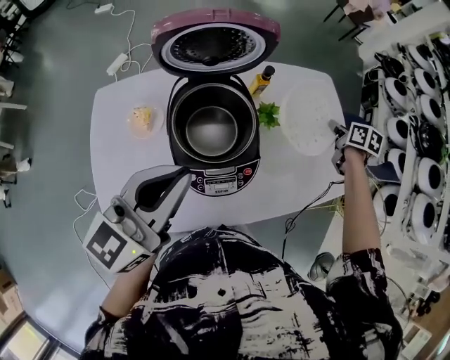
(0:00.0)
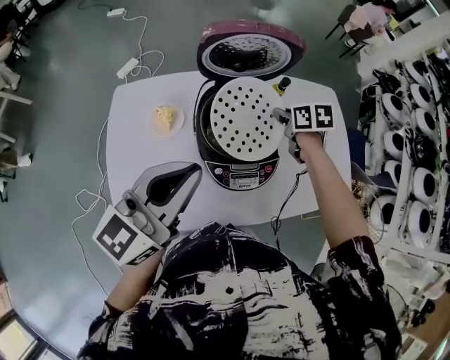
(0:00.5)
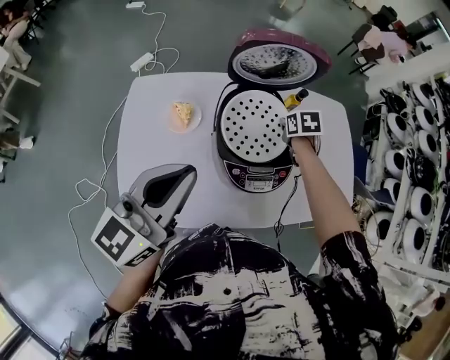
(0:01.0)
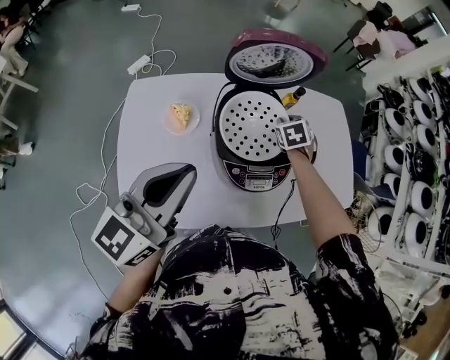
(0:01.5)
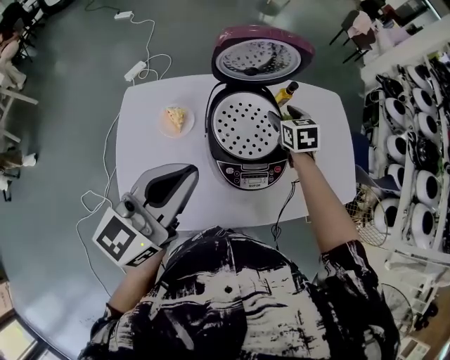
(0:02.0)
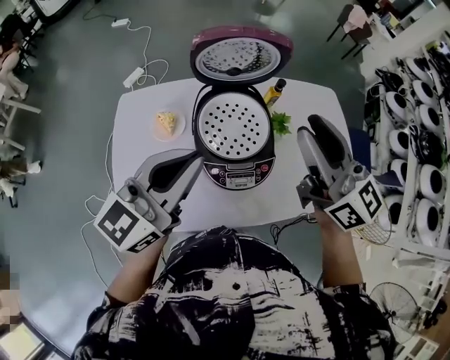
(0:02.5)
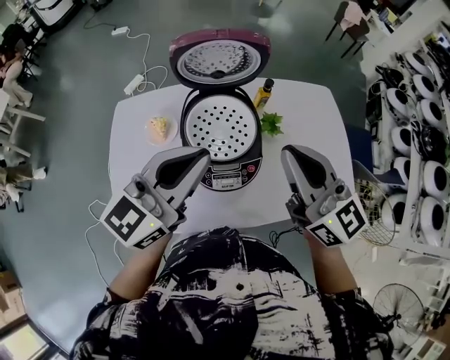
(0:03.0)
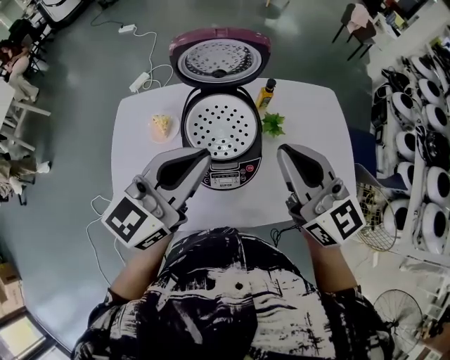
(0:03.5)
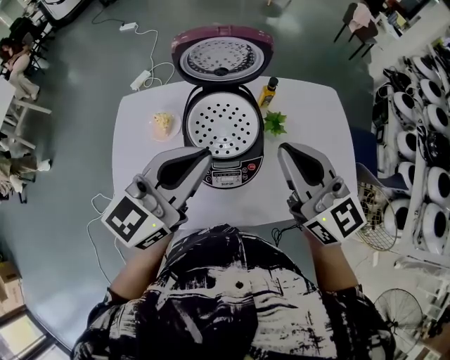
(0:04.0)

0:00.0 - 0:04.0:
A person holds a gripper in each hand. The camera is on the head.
0:00.0 - 0:02.0: The left gripper is displaced to the left and backward by about 10 cm. The right gripper travels to the left by some 30 cm, swivels some 40 degrees, and opens its fingers.
0:02.0 - 0:04.0: The left gripper is displaced to the right by about 15 cm, while the right gripper moves upward and backward, approximately 30 cm, angles its fingers upward, by approximately 40 degrees, and closes up.

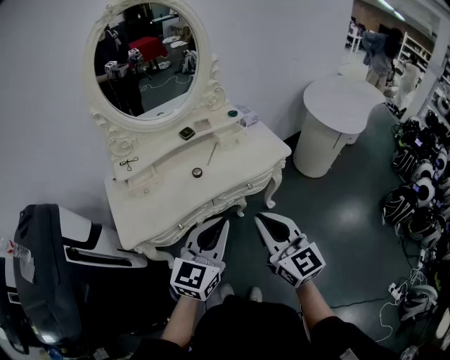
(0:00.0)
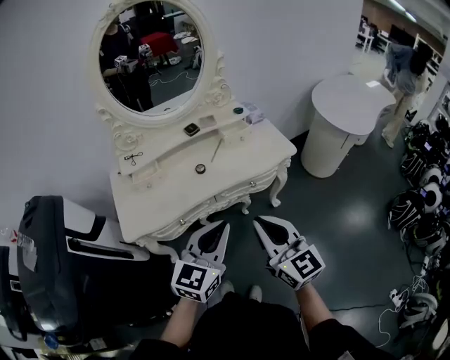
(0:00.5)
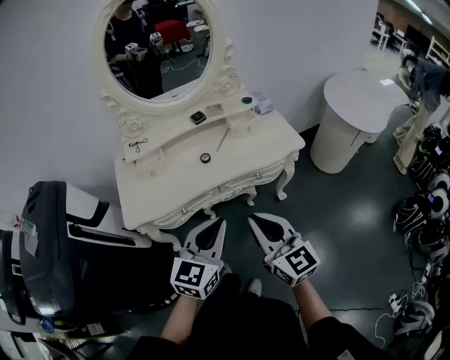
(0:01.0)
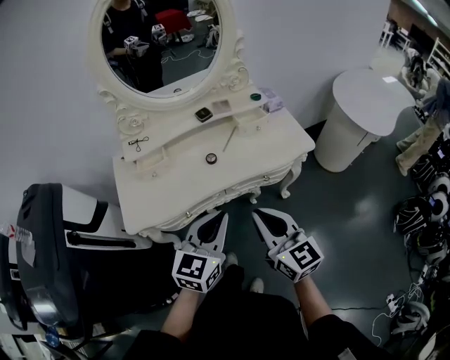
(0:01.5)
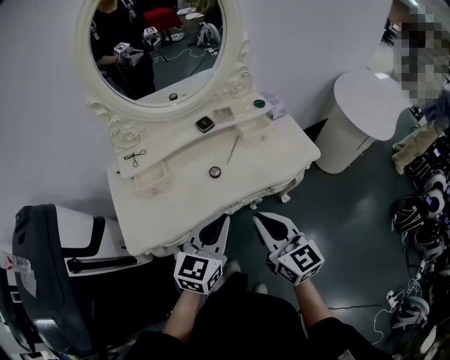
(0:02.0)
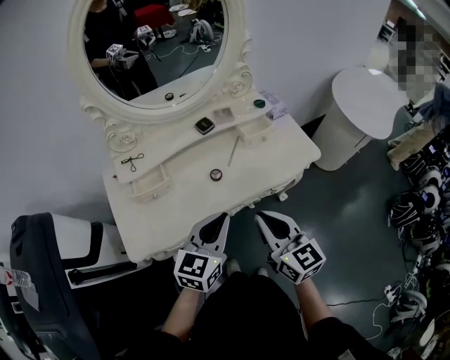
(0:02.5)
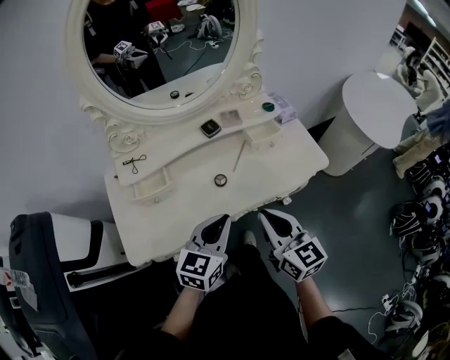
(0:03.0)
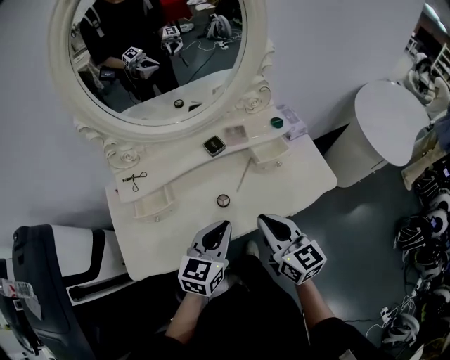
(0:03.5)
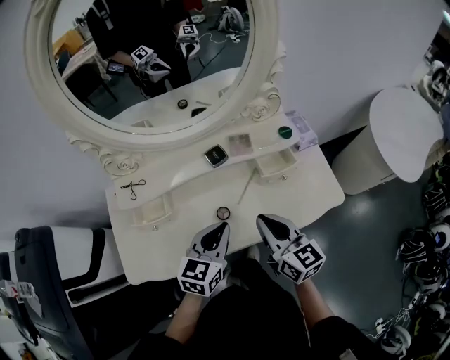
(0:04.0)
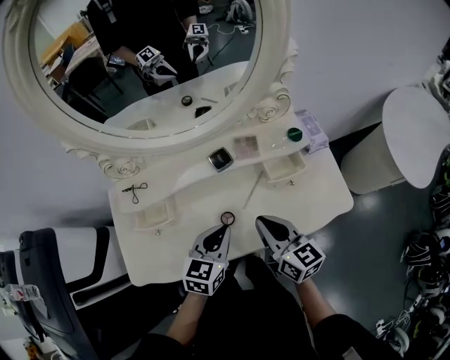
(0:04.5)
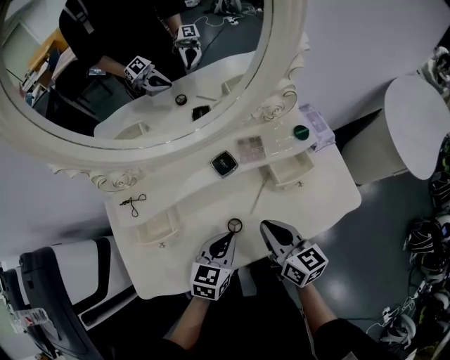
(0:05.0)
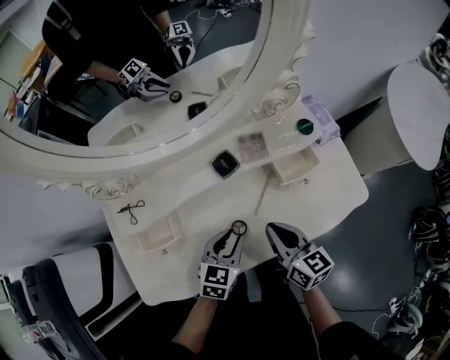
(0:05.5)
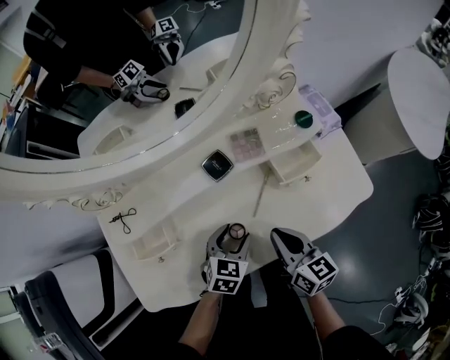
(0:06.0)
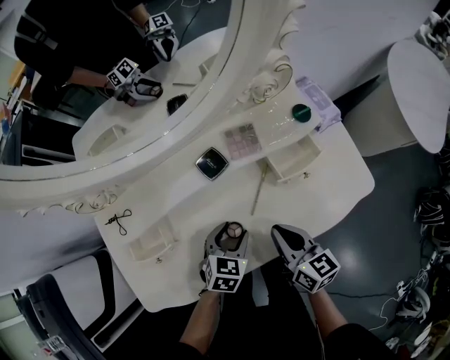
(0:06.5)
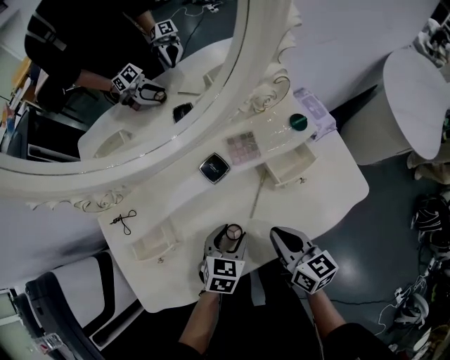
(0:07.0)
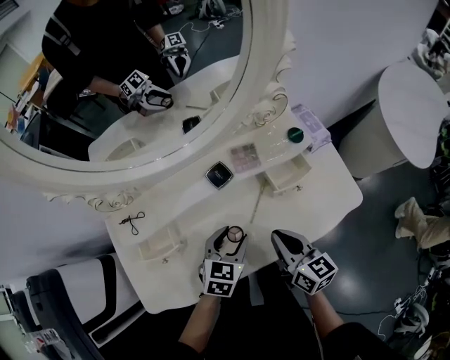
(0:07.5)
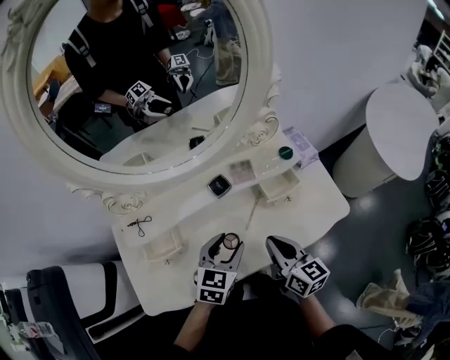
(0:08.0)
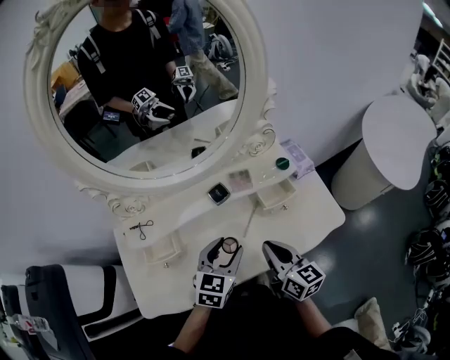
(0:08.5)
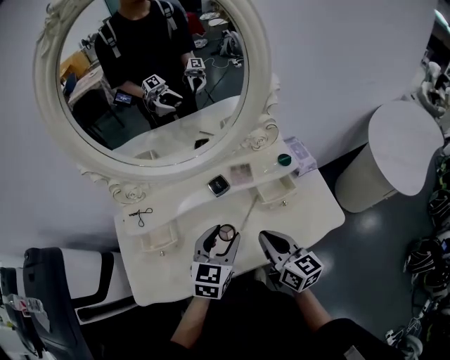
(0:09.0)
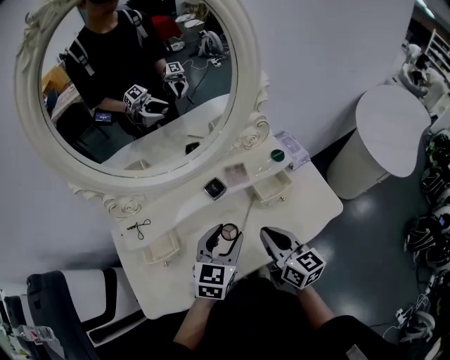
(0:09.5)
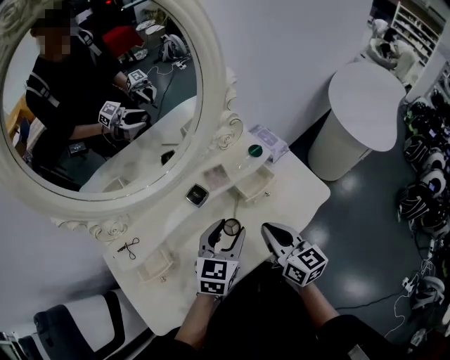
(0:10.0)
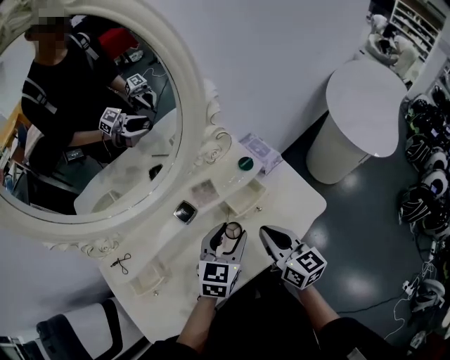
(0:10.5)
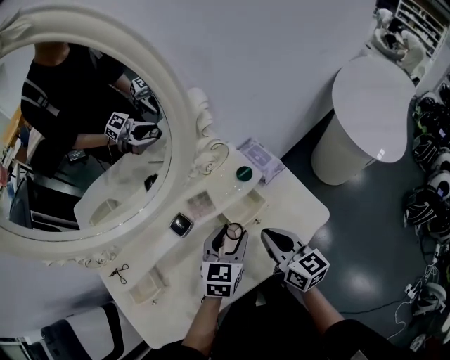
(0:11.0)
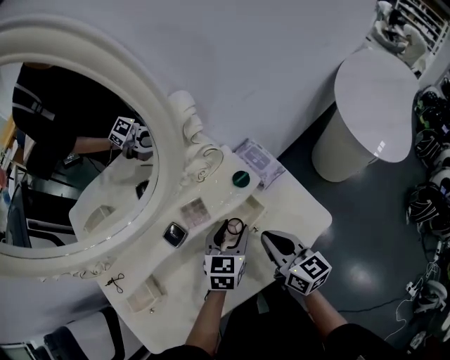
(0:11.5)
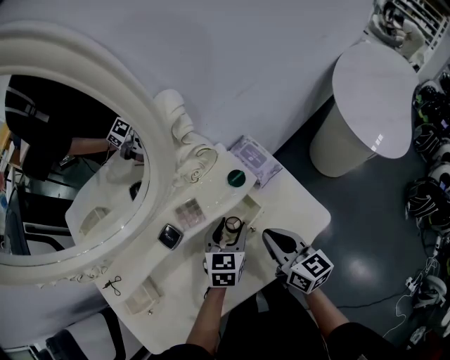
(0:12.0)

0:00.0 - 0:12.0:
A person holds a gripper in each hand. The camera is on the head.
0:00.0 - 0:02.0: The two grippers go about 15 cm forward, downward and to the left.
0:02.0 - 0:04.0: Both grippers travel together forward, roughly 20 cm.
0:04.0 - 0:06.0: Both grippers move downward, about 15 cm. The left gripper swivels some 30 degrees, and opens its fingers.
0:06.0 - 0:08.0: The left gripper travels upward by approximately 15 cm, while the right gripper goes approximately 10 cm upward.
0:08.0 - 0:10.0: The left gripper goes some 5 cm to the right.
0:10.0 - 0:12.0: The right gripper heads forward, to the right and downward, covering roughly 15 cm; the left gripper travels forward, downward and to the right by some 20 cm.

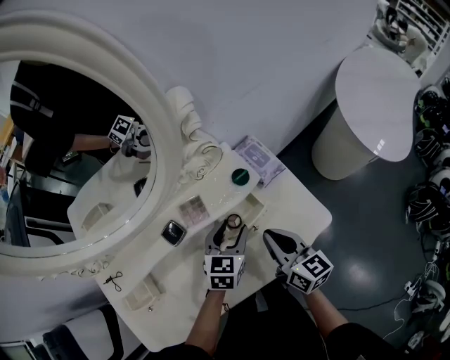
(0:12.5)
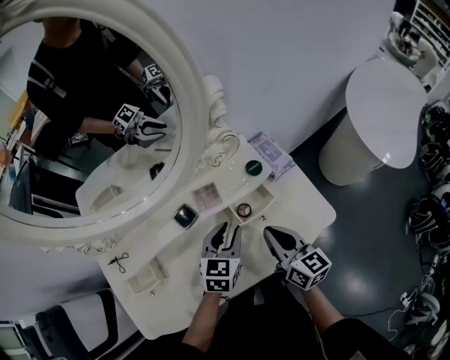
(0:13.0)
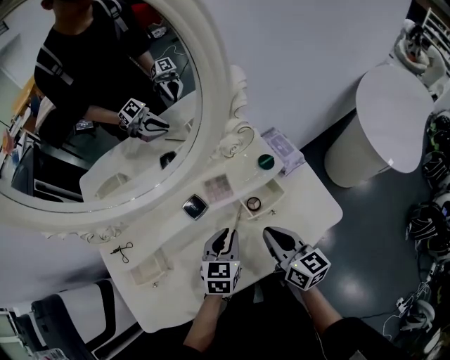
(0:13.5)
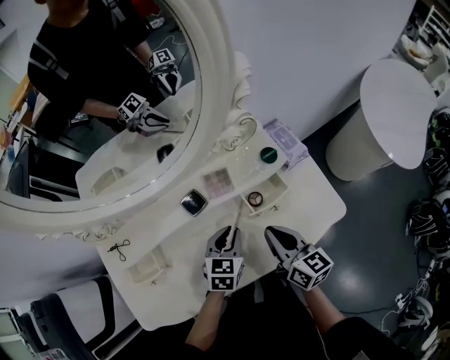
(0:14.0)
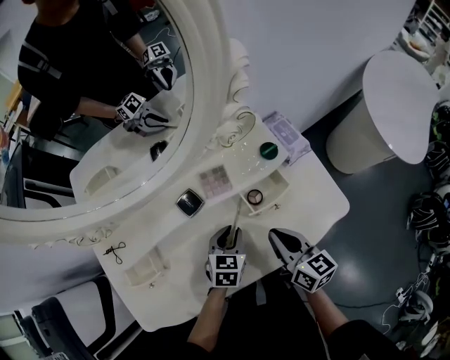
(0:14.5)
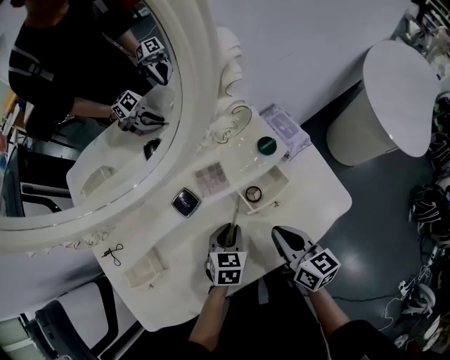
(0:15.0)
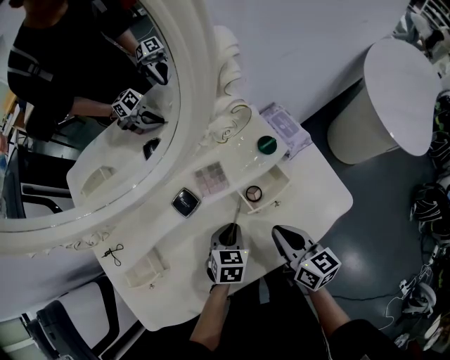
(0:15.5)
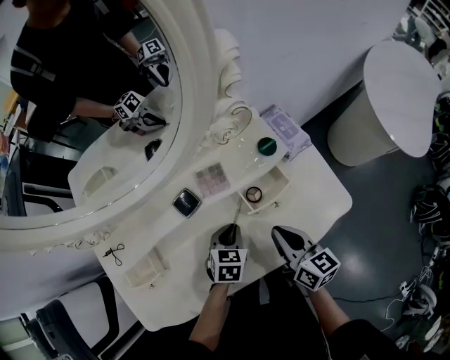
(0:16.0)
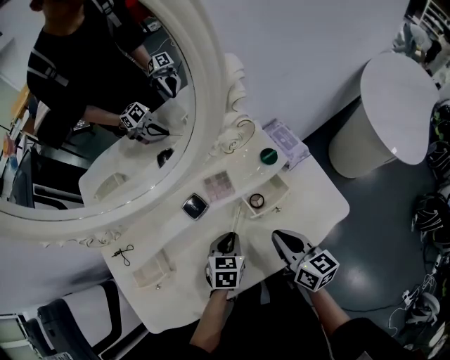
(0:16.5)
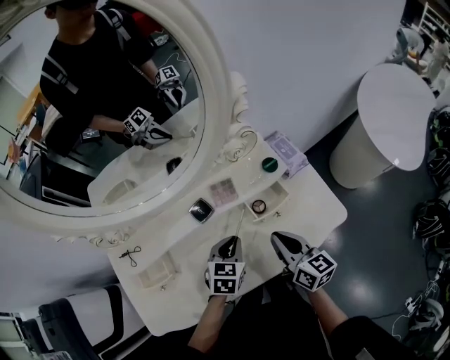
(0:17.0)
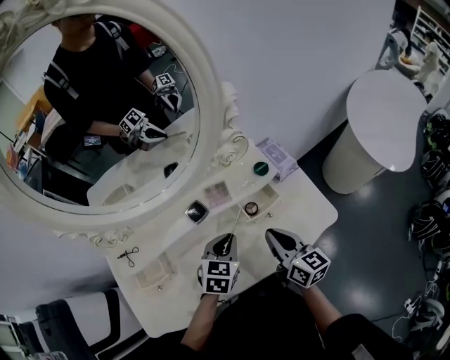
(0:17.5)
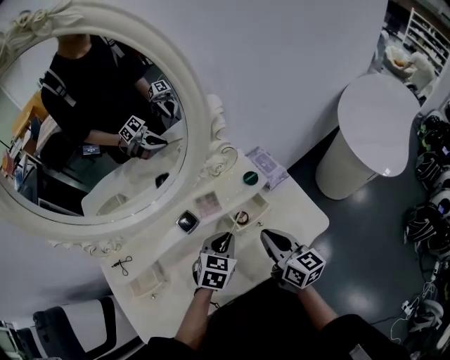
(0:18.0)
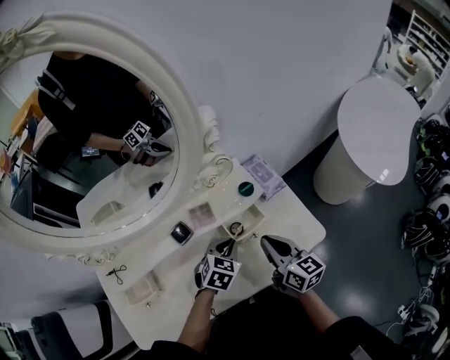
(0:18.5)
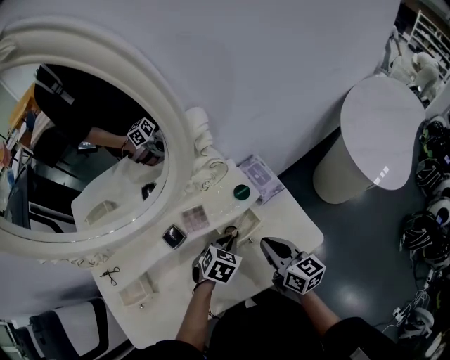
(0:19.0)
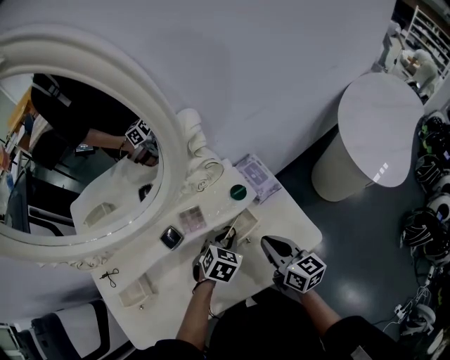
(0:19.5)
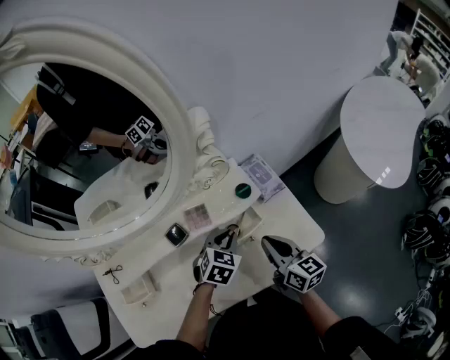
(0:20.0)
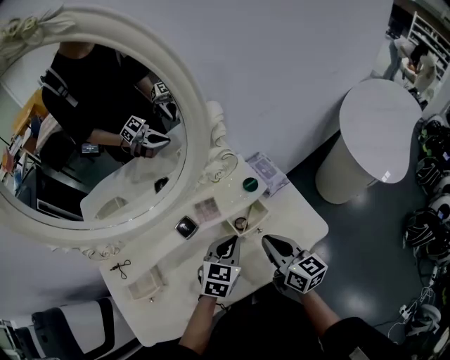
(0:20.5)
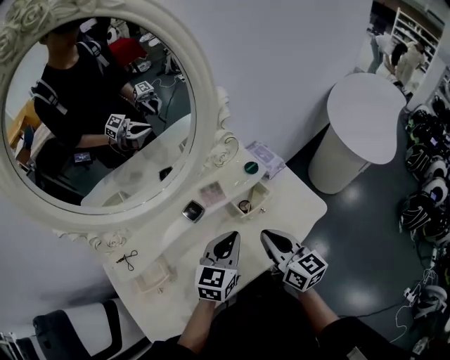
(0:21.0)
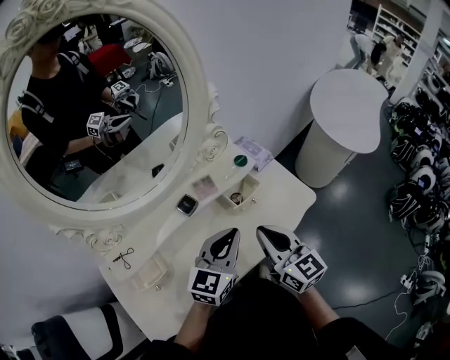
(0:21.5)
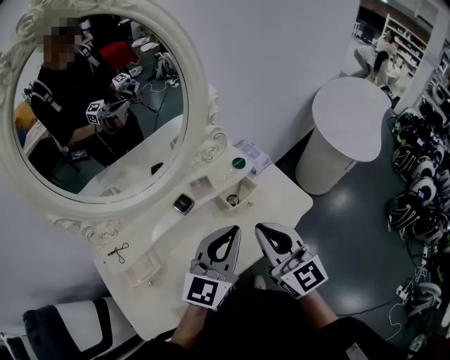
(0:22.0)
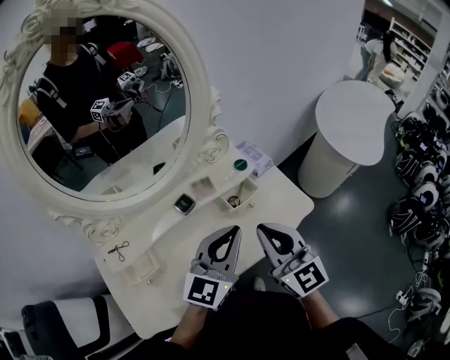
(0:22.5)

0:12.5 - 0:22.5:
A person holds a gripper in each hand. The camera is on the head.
0:12.5 - 0:14.5: The left gripper shifts about 15 cm to the left, downward and backward, and closes up; the right gripper is displaced to the left by roughly 5 cm.
0:14.5 - 0:16.5: The grippers make only small movements.
0:16.5 - 0:18.5: The right gripper changes place by roughly 10 cm. Meanwhile the left gripper heads to the right and upward, covering roughly 10 cm.
0:18.5 - 0:20.5: The left gripper heads upward, covering some 5 cm.
0:20.5 - 0:22.5: The two grippers go some 20 cm upward and backward. The left gripper points its fingers roughly 40 degrees further upward; the right gripper rotates approximately 40 degrees.

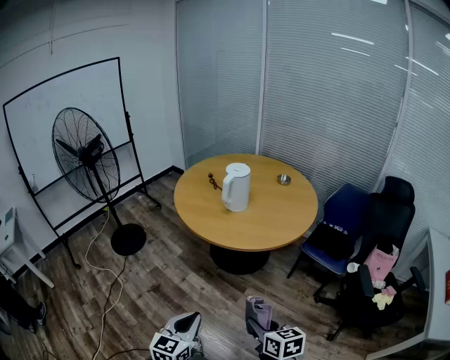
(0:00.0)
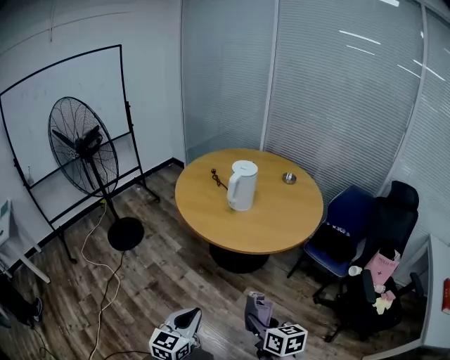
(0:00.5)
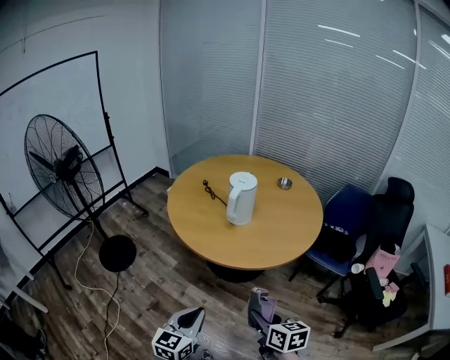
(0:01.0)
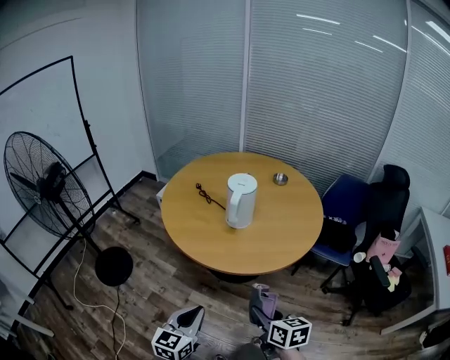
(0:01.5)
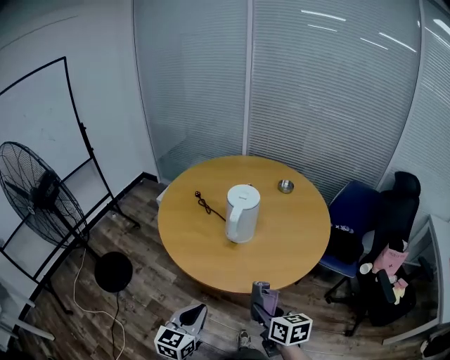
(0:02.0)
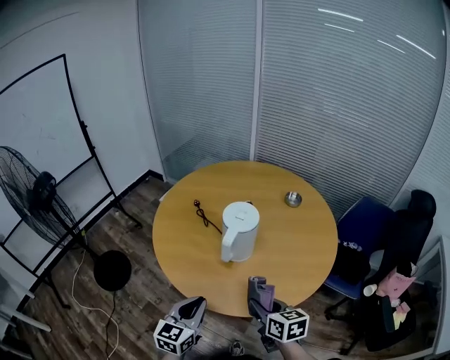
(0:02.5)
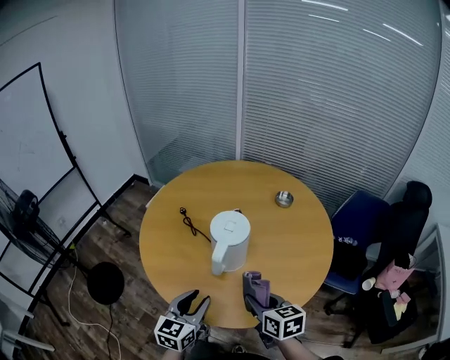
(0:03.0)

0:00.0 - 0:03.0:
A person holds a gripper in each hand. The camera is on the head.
0:00.0 - 0:01.5: The grippers both shift forward and to the left by roughly 25 cm.
0:01.5 - 0:03.0: The grippers both shift forward by about 30 cm. The left gripper opens.
